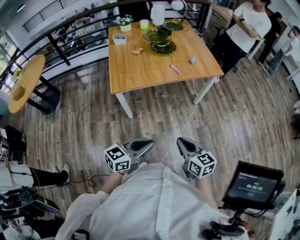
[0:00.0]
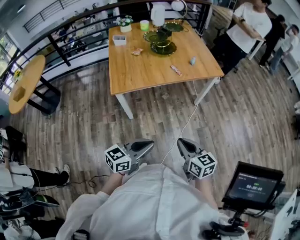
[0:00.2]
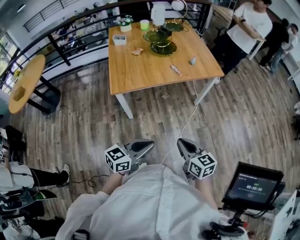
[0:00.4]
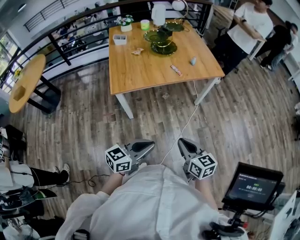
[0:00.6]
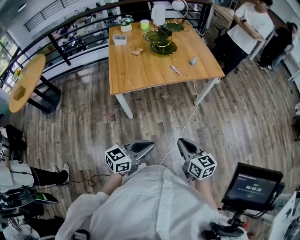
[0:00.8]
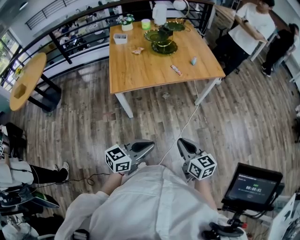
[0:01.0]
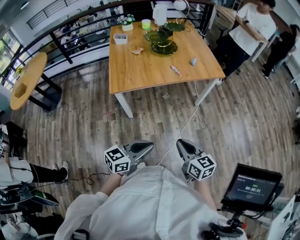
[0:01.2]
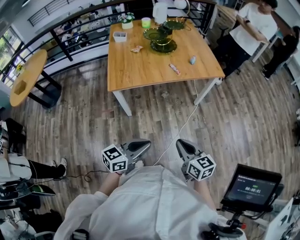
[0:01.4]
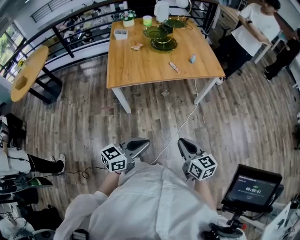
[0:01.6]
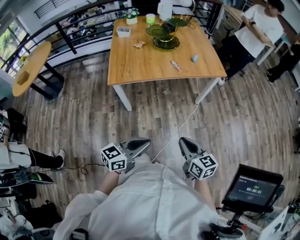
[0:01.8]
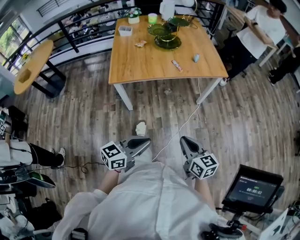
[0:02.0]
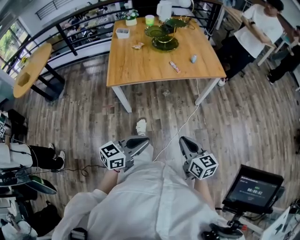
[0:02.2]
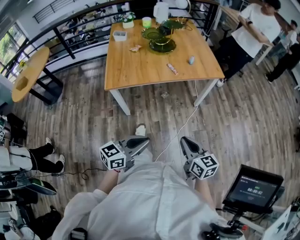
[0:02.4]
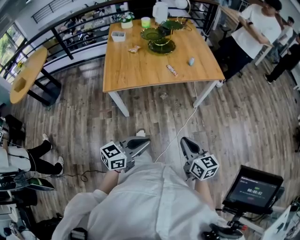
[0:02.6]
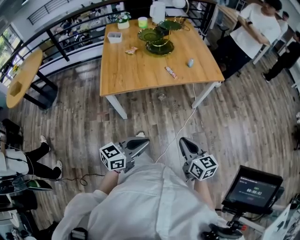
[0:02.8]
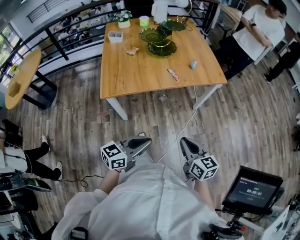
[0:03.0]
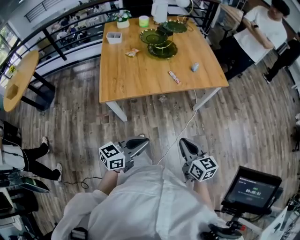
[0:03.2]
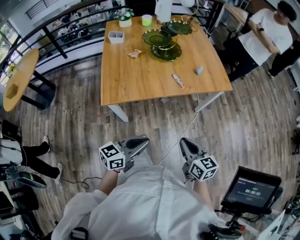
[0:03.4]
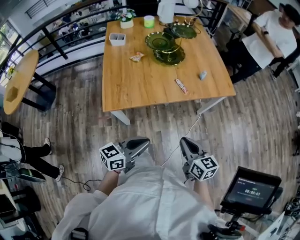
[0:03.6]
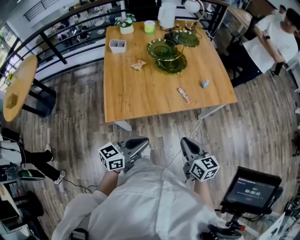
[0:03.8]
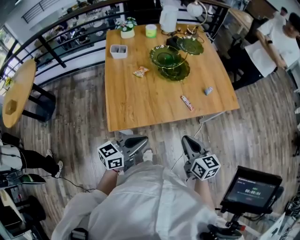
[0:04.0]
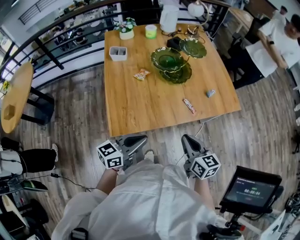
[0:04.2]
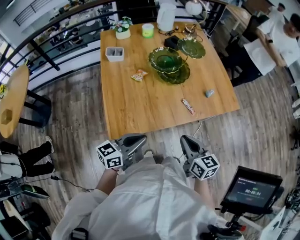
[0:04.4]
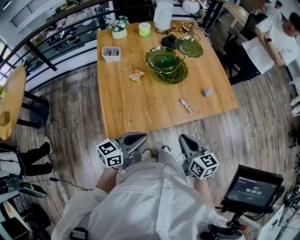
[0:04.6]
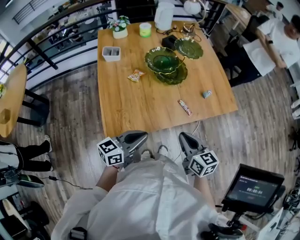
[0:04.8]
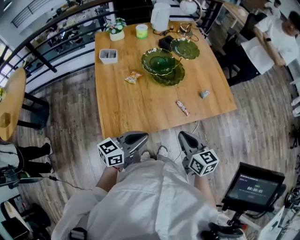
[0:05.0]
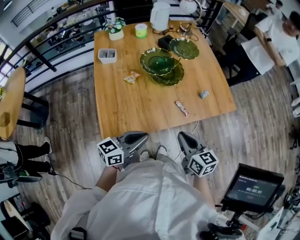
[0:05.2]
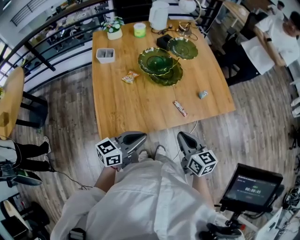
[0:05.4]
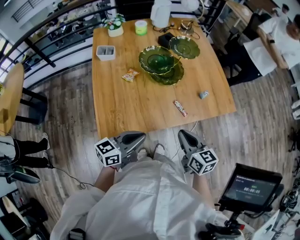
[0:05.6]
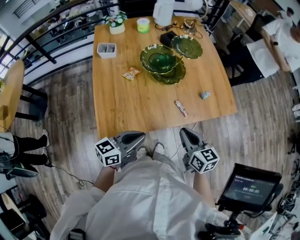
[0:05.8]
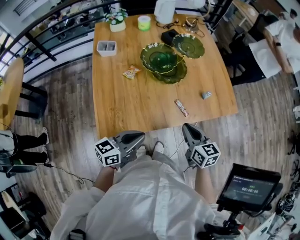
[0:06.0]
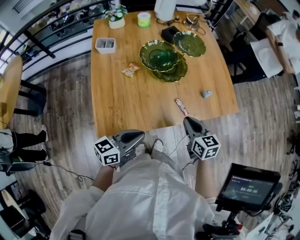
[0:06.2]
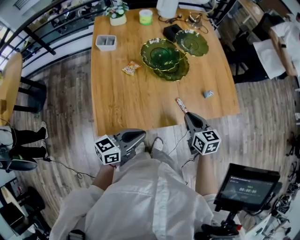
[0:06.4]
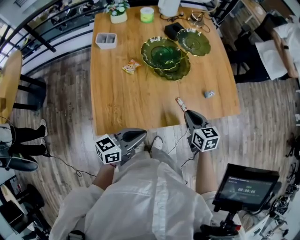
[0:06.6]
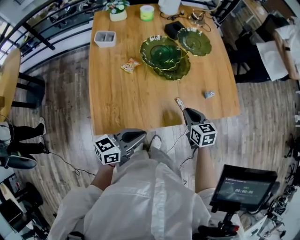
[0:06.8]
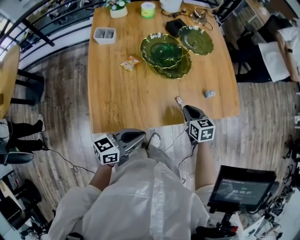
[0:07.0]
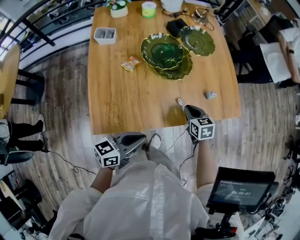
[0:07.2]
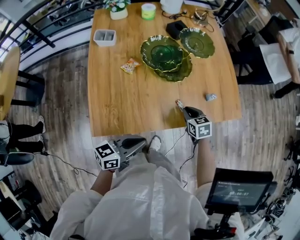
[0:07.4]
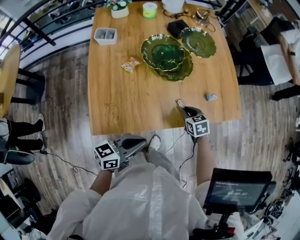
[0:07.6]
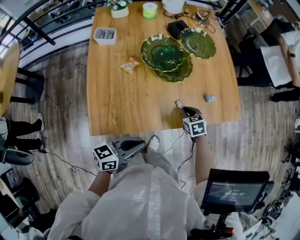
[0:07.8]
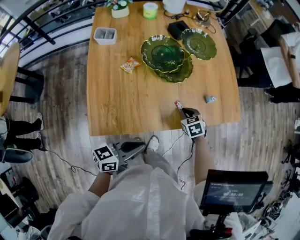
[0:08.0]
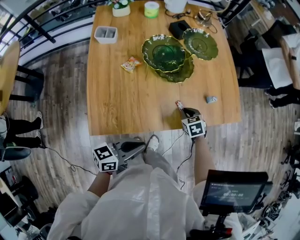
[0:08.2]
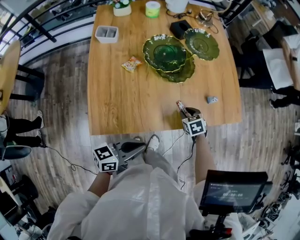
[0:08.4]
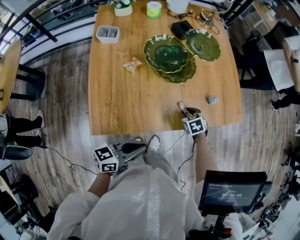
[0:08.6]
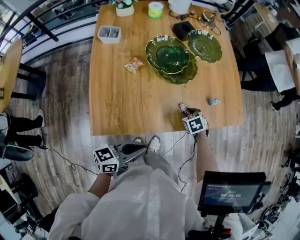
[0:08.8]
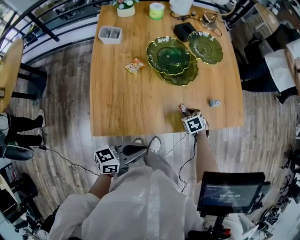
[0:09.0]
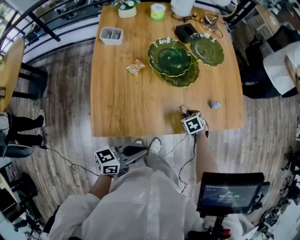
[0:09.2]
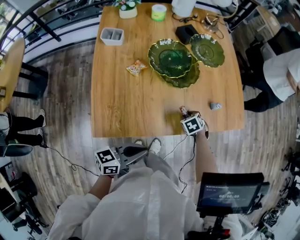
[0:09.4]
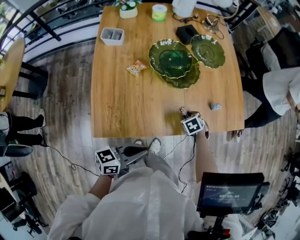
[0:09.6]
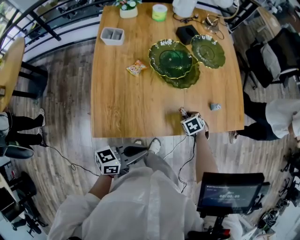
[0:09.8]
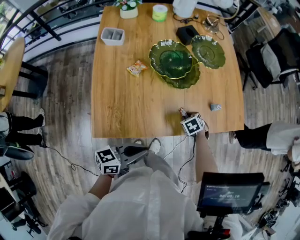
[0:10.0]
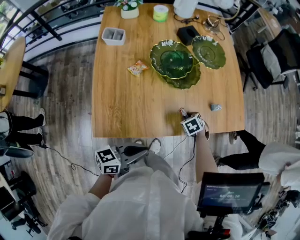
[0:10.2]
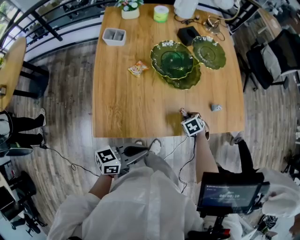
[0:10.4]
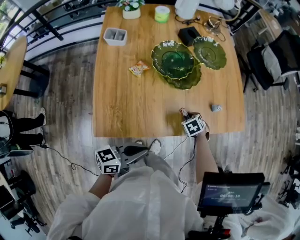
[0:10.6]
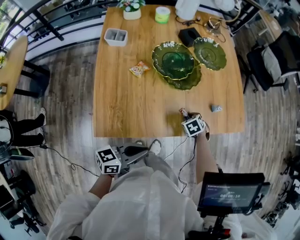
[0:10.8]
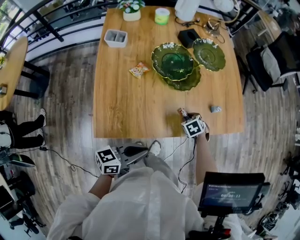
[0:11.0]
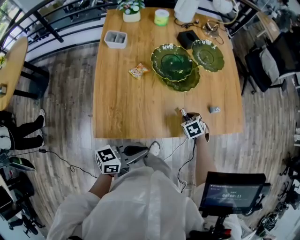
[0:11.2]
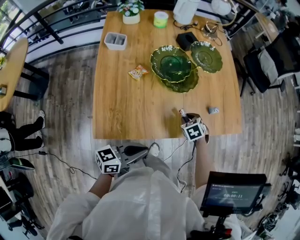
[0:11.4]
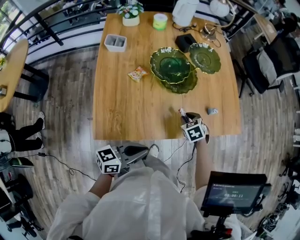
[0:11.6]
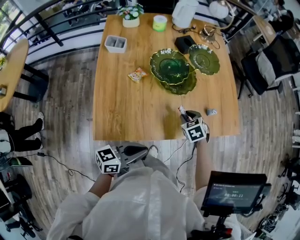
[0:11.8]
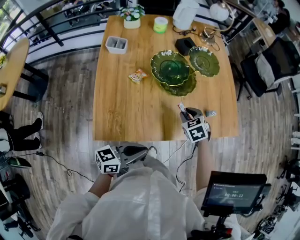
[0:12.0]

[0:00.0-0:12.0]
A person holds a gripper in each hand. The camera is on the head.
0:00.0 to 0:01.6: The two grippers go some 5 cm to the right.
0:01.6 to 0:03.0: Both grippers move forward, about 10 cm.
0:03.0 to 0:04.4: The grippers both shift forward and to the left by some 30 cm.
0:04.4 to 0:06.0: The right gripper shifts about 10 cm forward; the left gripper is displaced forward by about 5 cm.
0:06.0 to 0:07.6: The right gripper goes roughly 20 cm downward and forward, and swivels approximately 30 degrees.
0:07.6 to 0:09.0: The right gripper travels downward by approximately 5 cm, and opens up.
0:09.0 to 0:10.4: The grippers make only small movements.
0:10.4 to 0:12.0: The right gripper travels upward by about 15 cm, and rotates some 20 degrees.

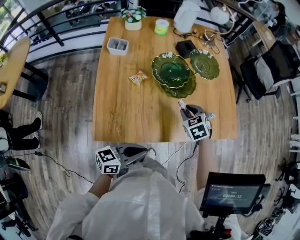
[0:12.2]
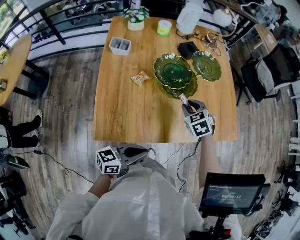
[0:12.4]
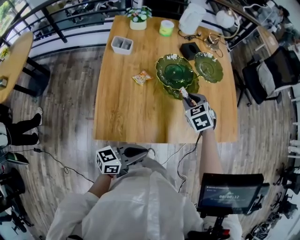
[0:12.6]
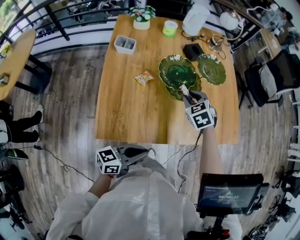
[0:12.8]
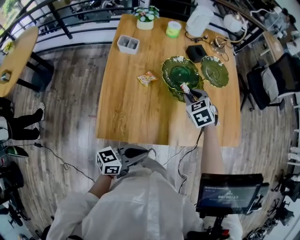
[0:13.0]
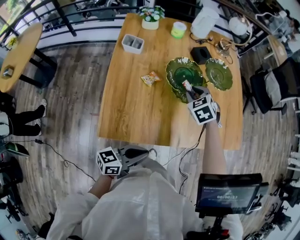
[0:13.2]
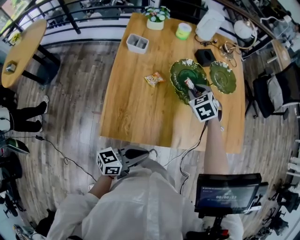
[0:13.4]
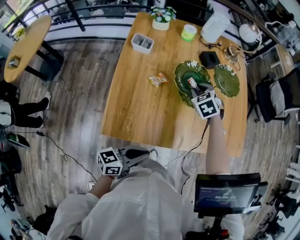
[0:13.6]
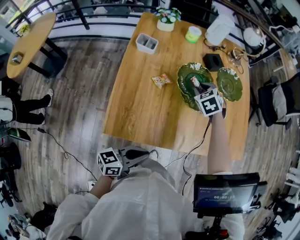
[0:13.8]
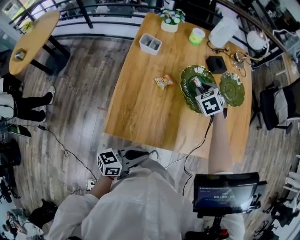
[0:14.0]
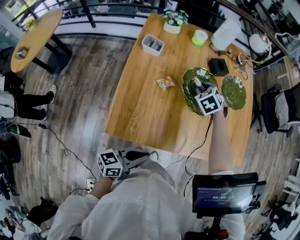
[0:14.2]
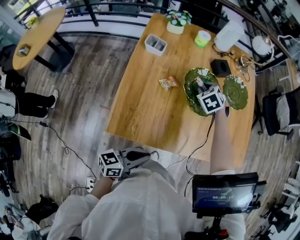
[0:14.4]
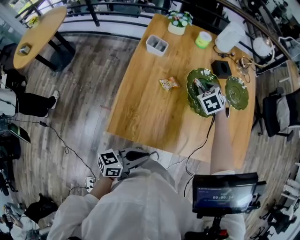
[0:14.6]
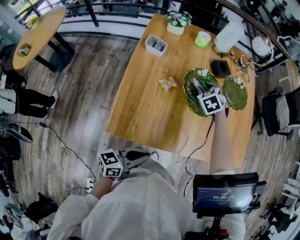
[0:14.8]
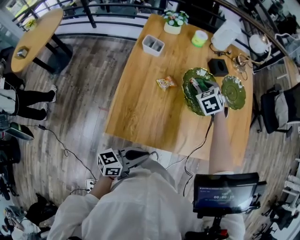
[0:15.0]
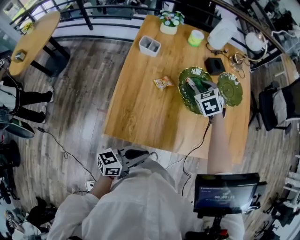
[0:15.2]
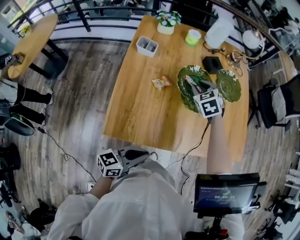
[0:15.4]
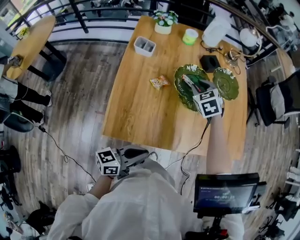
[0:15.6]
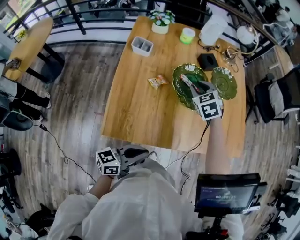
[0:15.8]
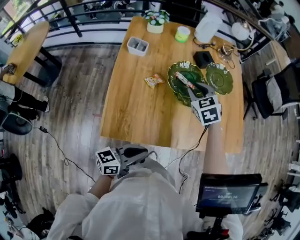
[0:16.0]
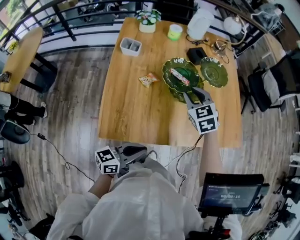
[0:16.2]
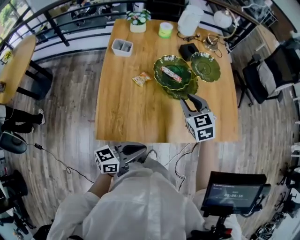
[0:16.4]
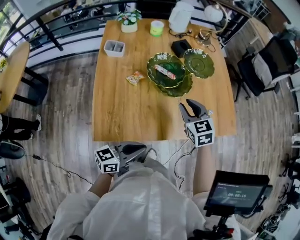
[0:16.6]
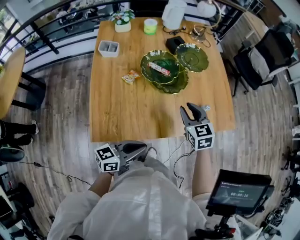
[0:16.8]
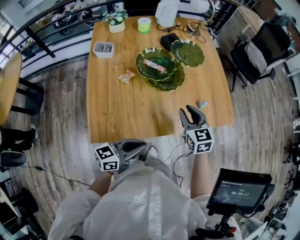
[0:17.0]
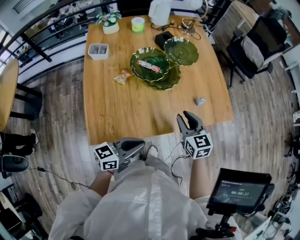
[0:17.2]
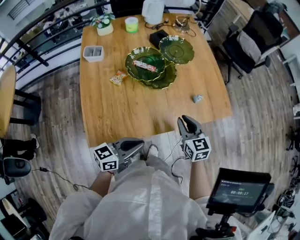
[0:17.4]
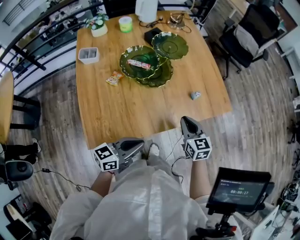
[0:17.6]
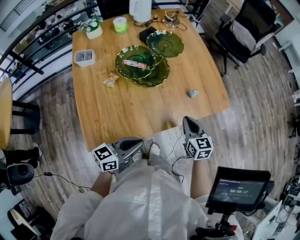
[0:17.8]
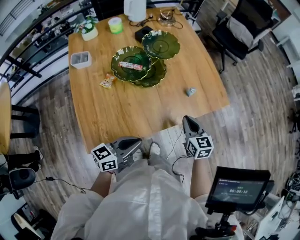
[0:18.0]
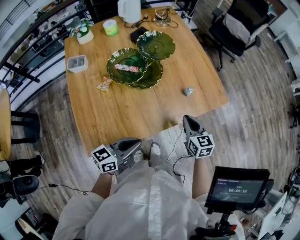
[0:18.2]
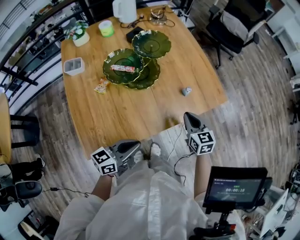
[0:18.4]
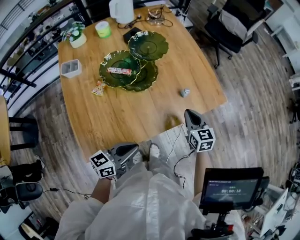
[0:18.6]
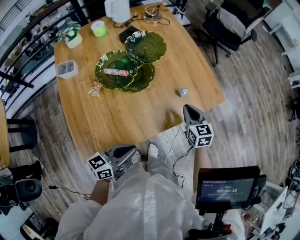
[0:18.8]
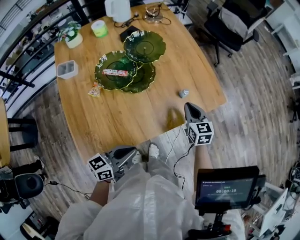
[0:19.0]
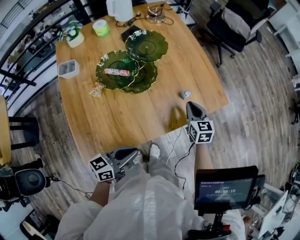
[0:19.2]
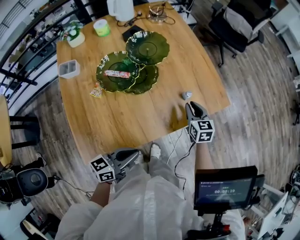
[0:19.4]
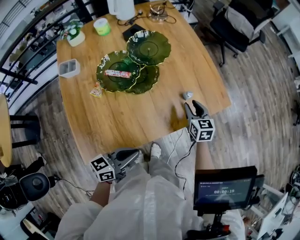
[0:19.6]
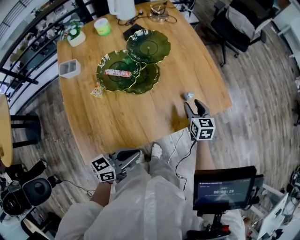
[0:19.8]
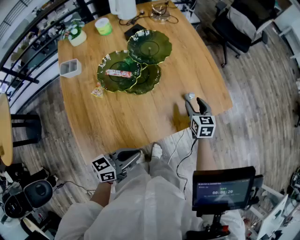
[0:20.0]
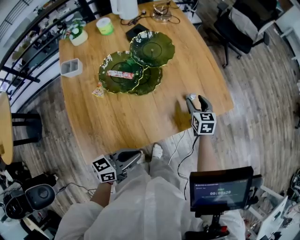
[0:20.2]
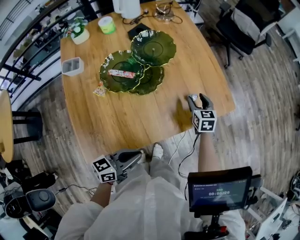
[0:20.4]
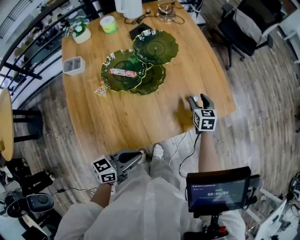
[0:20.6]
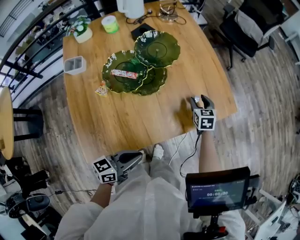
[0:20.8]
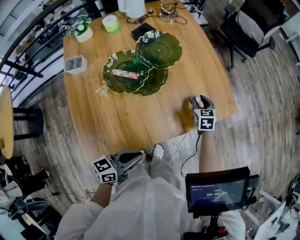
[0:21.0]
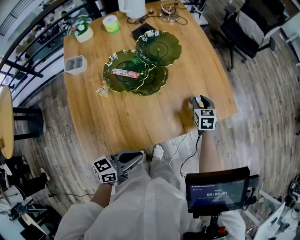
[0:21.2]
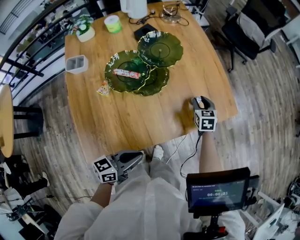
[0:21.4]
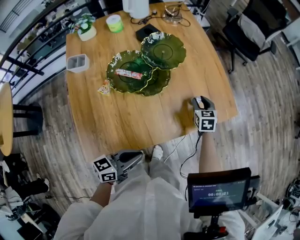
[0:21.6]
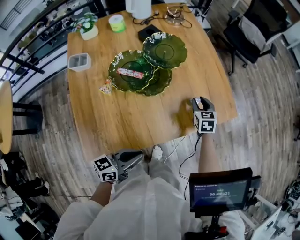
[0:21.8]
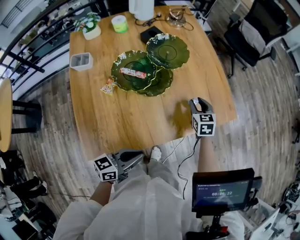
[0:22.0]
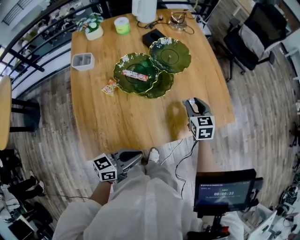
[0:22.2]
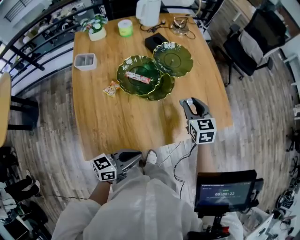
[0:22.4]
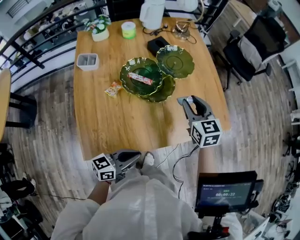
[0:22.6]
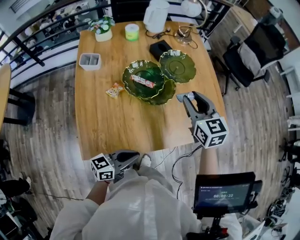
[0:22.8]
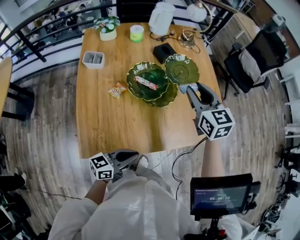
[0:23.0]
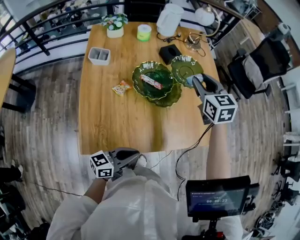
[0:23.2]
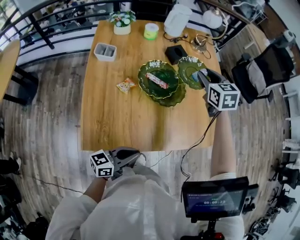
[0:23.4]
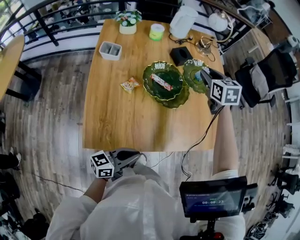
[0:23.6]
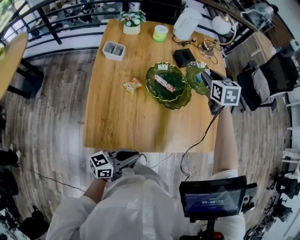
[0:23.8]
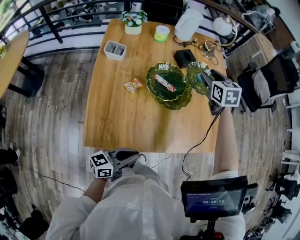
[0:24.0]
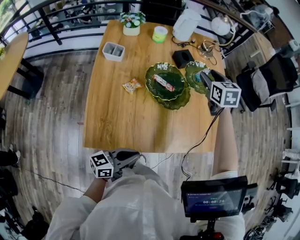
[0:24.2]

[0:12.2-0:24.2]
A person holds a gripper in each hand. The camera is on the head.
0:12.2 to 0:13.8: The right gripper travels forward and to the left by roughly 15 cm.
0:13.8 to 0:15.2: The grippers move only a little.
0:15.2 to 0:16.6: The right gripper moves backward and to the right, approximately 20 cm, and rotates some 30 degrees.
0:16.6 to 0:18.2: The right gripper moves to the right and downward, approximately 20 cm, changes its angle by about 30 degrees, and closes up, while the left gripper moves some 5 cm.
0:18.2 to 0:19.8: The right gripper shifts roughly 15 cm forward and downward, and opens.
0:19.8 to 0:21.2: The right gripper heads forward, covering approximately 5 cm.
0:21.2 to 0:22.6: The right gripper travels upward and to the left by some 25 cm, and rotates some 30 degrees.
0:22.6 to 0:24.2: The right gripper shifts approximately 20 cm forward, to the left and upward.
